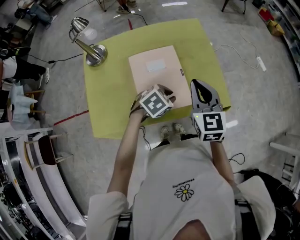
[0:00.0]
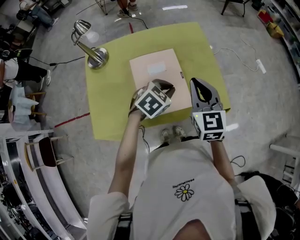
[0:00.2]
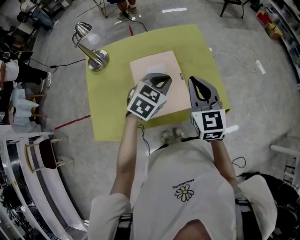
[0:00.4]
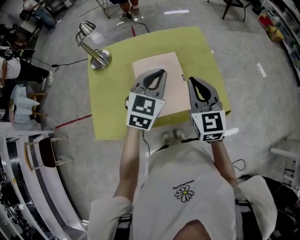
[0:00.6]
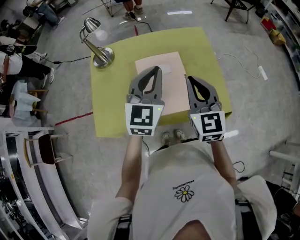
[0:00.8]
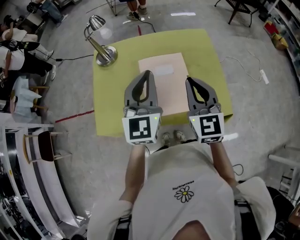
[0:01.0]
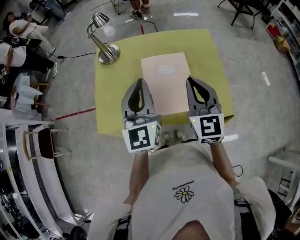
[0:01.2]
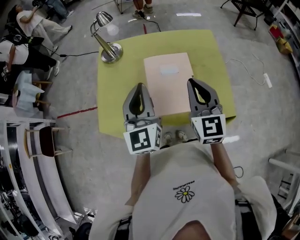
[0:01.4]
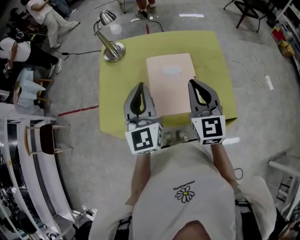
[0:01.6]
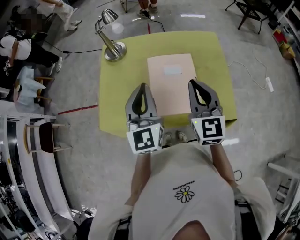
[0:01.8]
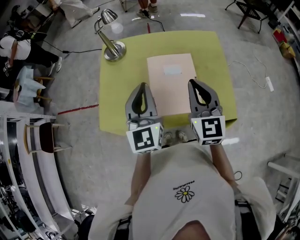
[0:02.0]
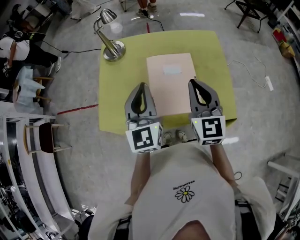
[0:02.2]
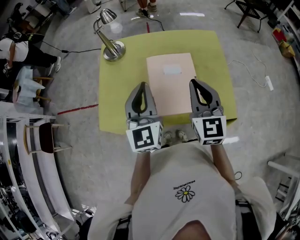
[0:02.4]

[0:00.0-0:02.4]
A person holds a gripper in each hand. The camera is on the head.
0:00.0 to 0:01.2: The right gripper goes about 5 cm upward. The left gripper shifts roughly 25 cm upward, and tips its fingers upward by roughly 60 degrees.
0:01.2 to 0:02.4: There are only small adjustments of the grippers.

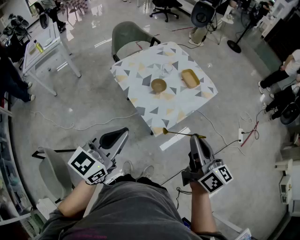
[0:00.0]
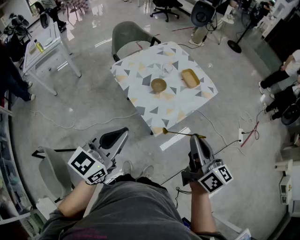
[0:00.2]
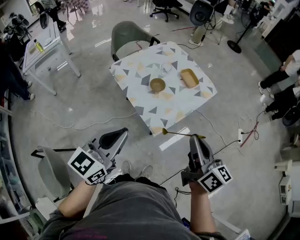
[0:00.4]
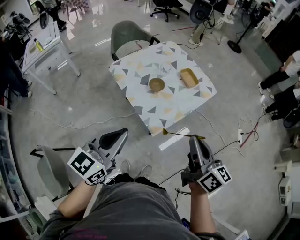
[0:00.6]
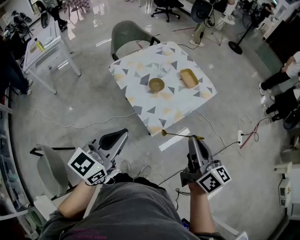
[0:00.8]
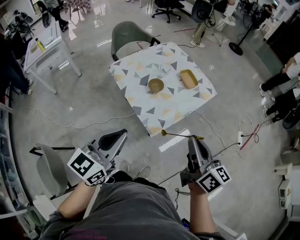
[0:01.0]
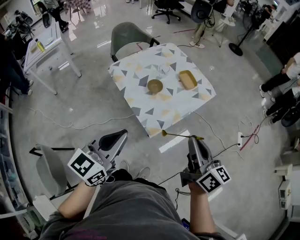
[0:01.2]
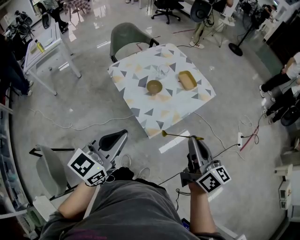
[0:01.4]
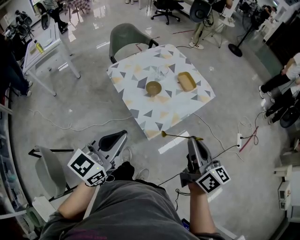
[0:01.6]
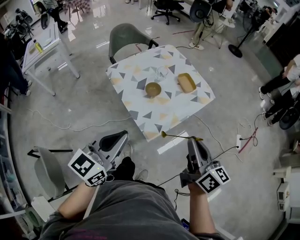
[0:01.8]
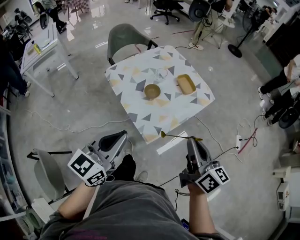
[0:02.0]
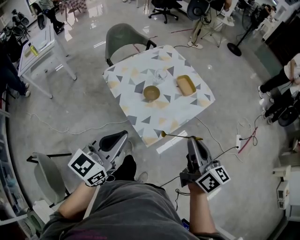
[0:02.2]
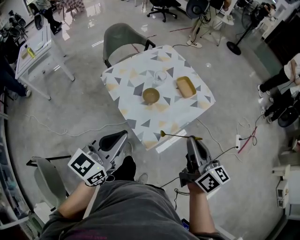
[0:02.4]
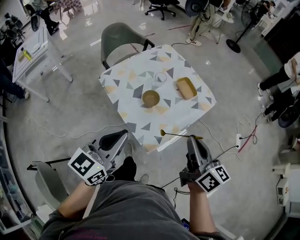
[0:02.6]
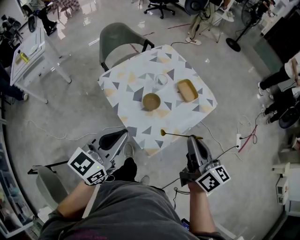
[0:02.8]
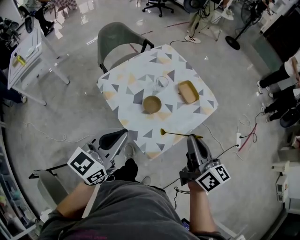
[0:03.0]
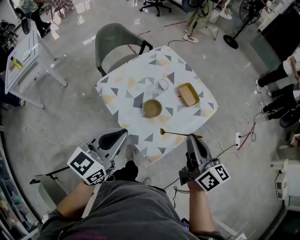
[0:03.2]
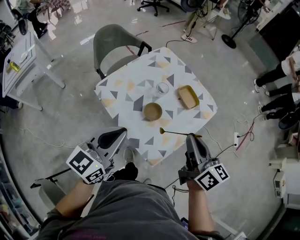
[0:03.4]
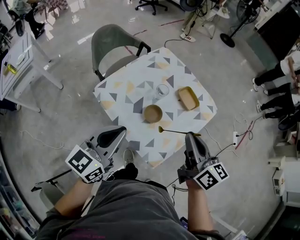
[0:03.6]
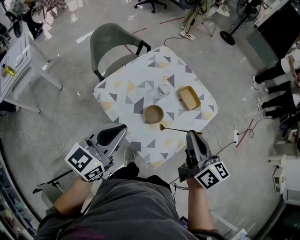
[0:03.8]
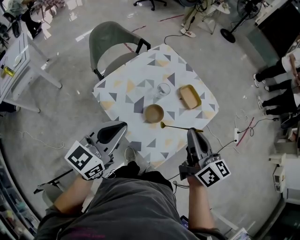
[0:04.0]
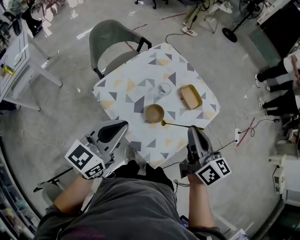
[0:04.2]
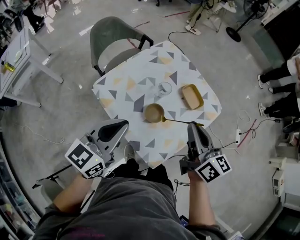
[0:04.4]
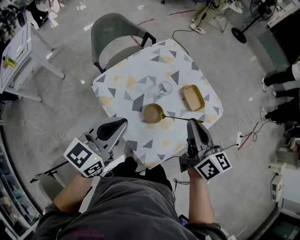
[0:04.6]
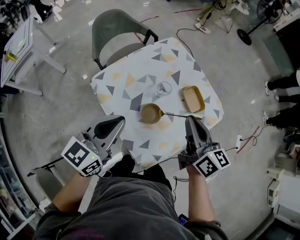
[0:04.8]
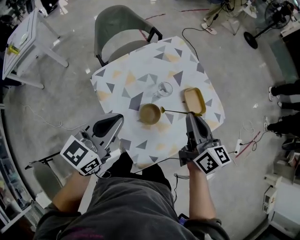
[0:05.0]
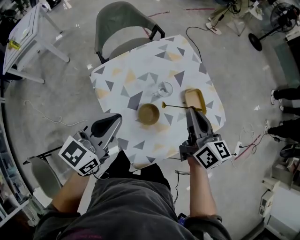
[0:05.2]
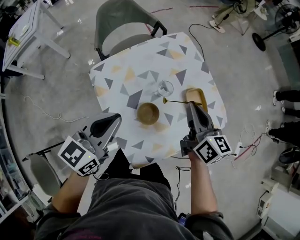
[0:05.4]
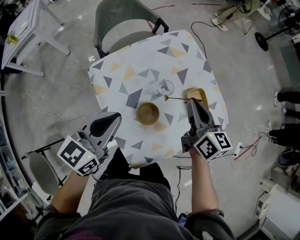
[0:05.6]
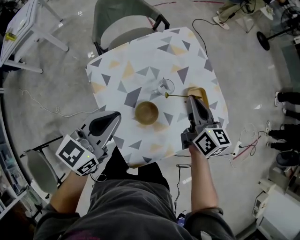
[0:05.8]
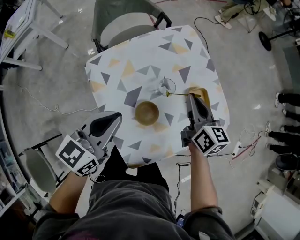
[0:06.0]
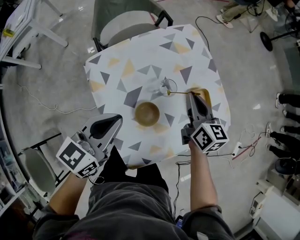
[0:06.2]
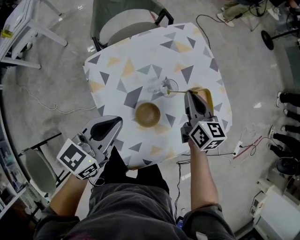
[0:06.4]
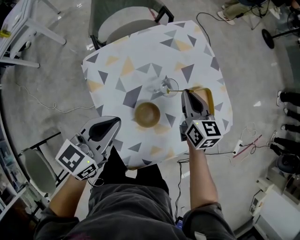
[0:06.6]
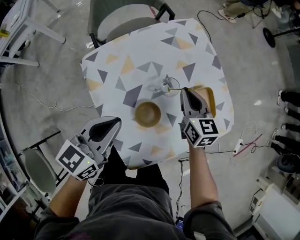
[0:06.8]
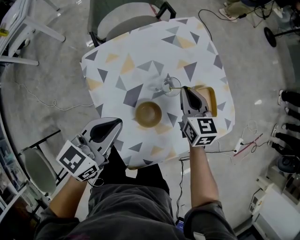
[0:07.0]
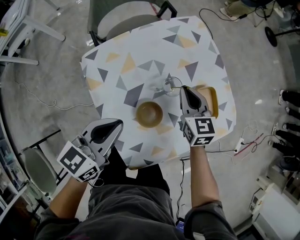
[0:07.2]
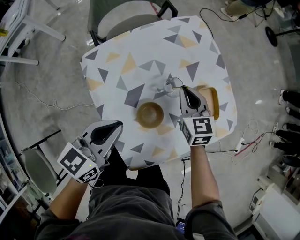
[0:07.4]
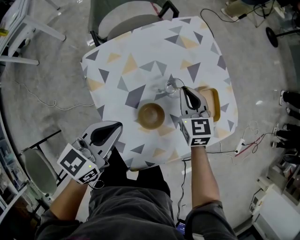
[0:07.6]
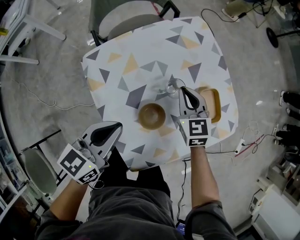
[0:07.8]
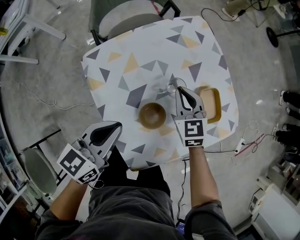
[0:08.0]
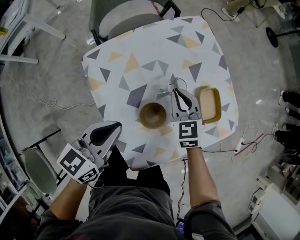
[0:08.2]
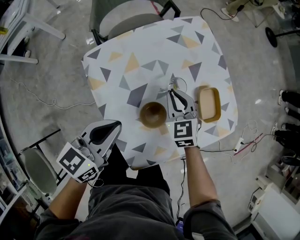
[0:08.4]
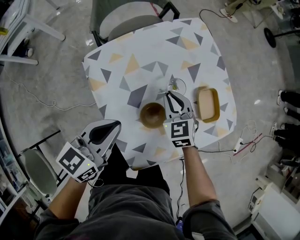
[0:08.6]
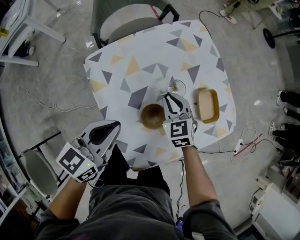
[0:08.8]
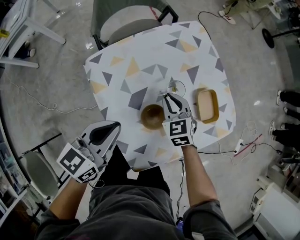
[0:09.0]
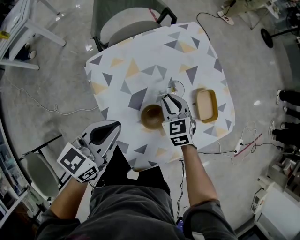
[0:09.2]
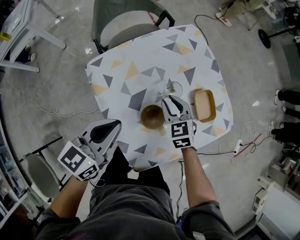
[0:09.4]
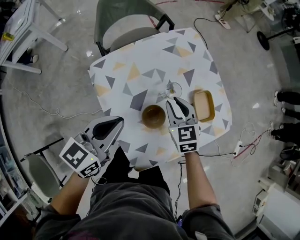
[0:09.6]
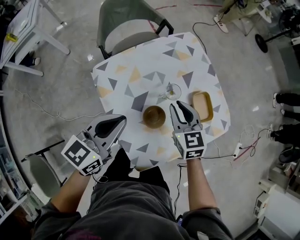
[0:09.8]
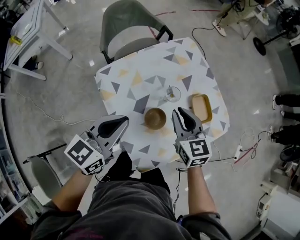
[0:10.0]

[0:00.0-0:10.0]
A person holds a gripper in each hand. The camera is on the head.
0:00.0 to 0:01.4: The right gripper ends up roughly 5 cm from where it was.
0:01.4 to 0:02.8: Both grippers travel together forward, about 15 cm.
0:02.8 to 0:04.2: The grippers both shift forward and to the left by some 15 cm.
0:04.2 to 0:05.8: The right gripper shifts approximately 25 cm forward and downward. The left gripper heads forward and downward, covering about 15 cm.
0:05.8 to 0:07.2: The two grippers go roughly 10 cm downward. The right gripper changes its angle by about 30 degrees.
0:07.2 to 0:08.6: The right gripper travels to the left by some 5 cm, and turns by about 20 degrees.
0:08.6 to 0:10.0: The left gripper moves upward, approximately 10 cm. Meanwhile the right gripper goes roughly 15 cm upward, and turns by approximately 20 degrees.

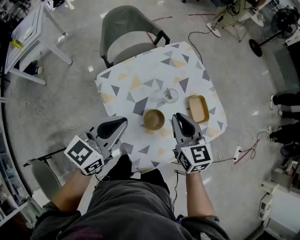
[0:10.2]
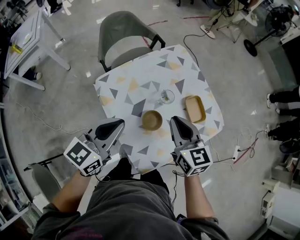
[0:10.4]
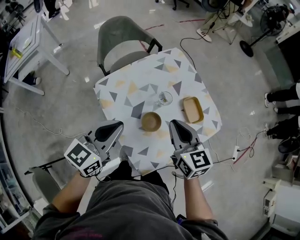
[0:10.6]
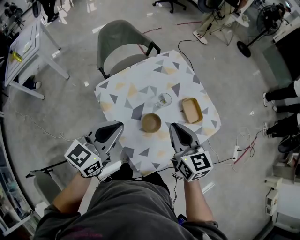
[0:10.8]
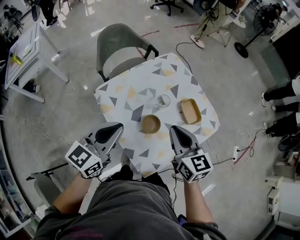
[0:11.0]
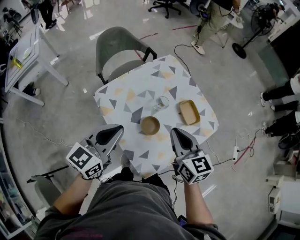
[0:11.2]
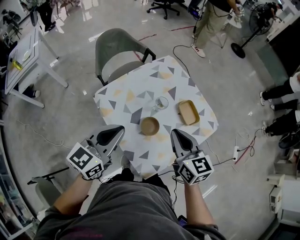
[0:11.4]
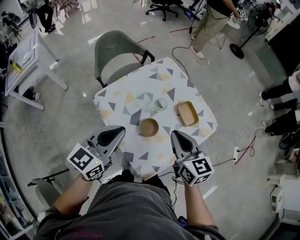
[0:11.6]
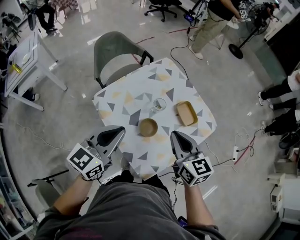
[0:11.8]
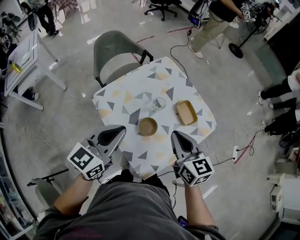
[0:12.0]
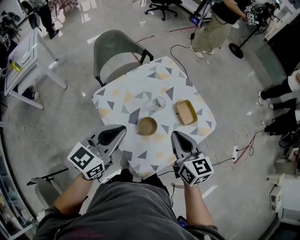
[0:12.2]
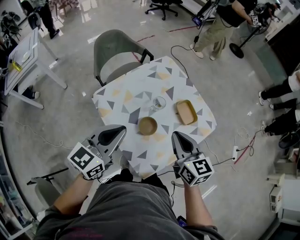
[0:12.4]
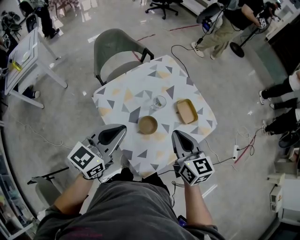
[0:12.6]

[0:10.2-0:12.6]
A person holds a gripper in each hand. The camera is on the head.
0:10.2 to 0:11.4: The left gripper is displaced upward by approximately 5 cm. The right gripper heads backward and upward, covering roughly 10 cm.
0:11.4 to 0:12.6: The grippers make only small movements.

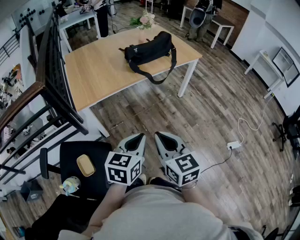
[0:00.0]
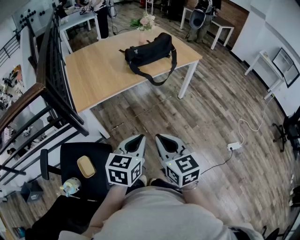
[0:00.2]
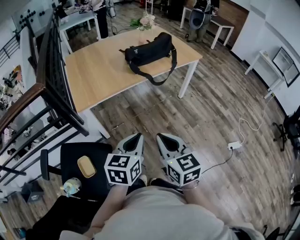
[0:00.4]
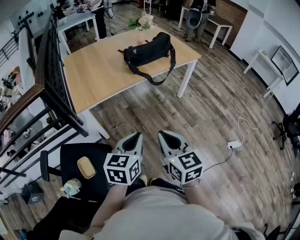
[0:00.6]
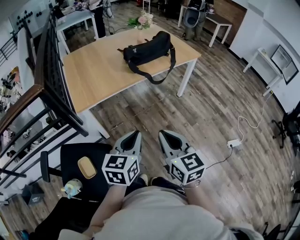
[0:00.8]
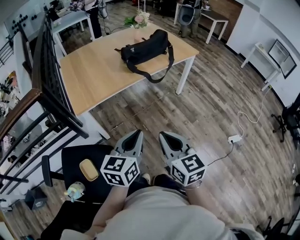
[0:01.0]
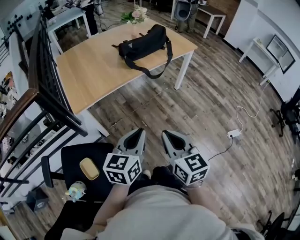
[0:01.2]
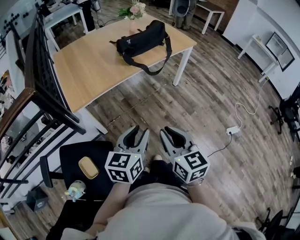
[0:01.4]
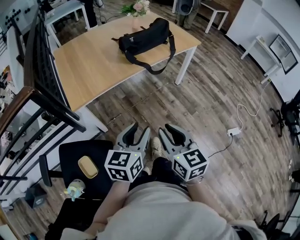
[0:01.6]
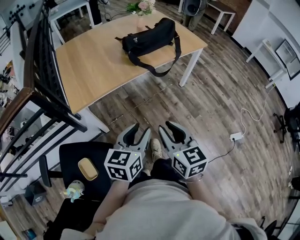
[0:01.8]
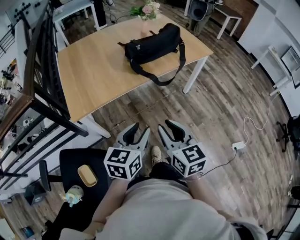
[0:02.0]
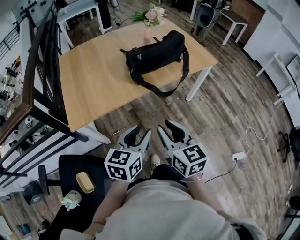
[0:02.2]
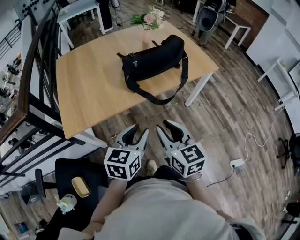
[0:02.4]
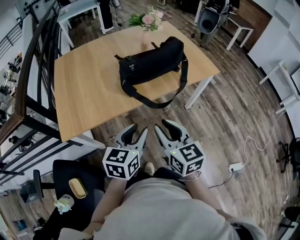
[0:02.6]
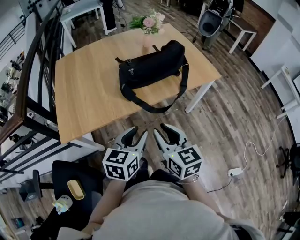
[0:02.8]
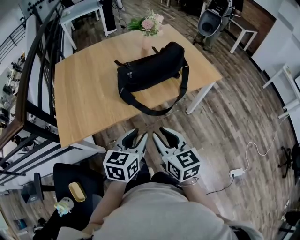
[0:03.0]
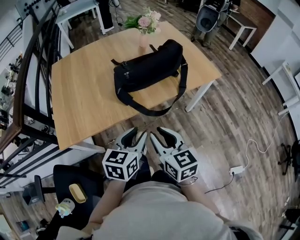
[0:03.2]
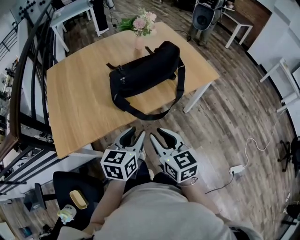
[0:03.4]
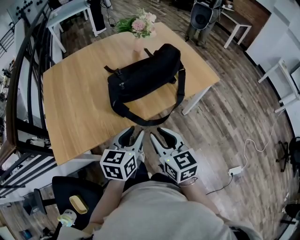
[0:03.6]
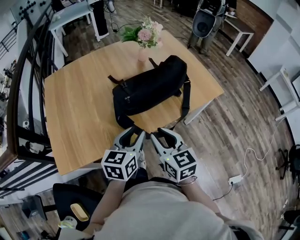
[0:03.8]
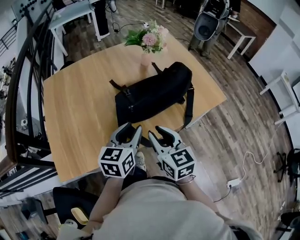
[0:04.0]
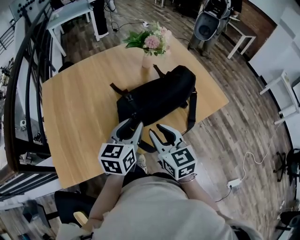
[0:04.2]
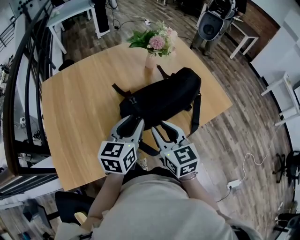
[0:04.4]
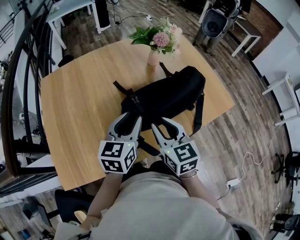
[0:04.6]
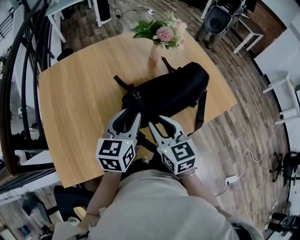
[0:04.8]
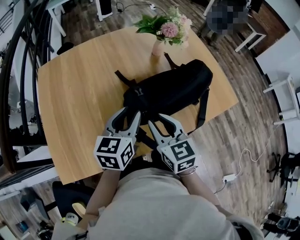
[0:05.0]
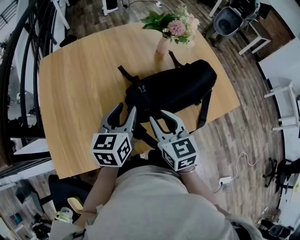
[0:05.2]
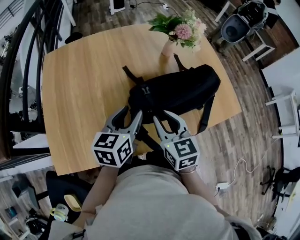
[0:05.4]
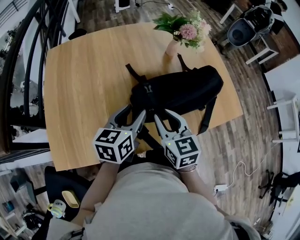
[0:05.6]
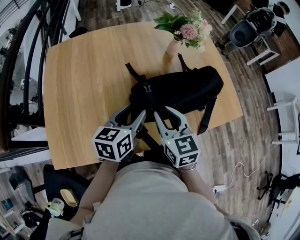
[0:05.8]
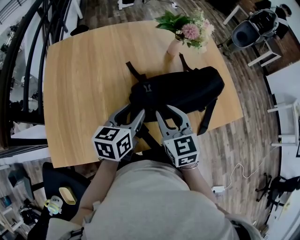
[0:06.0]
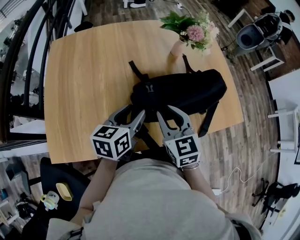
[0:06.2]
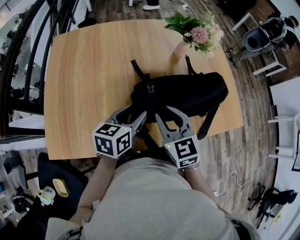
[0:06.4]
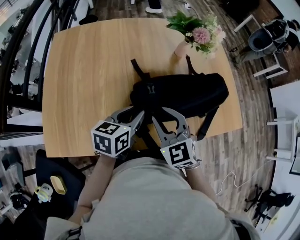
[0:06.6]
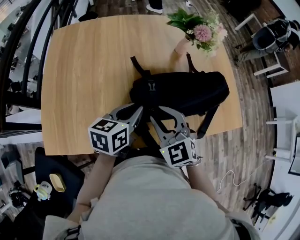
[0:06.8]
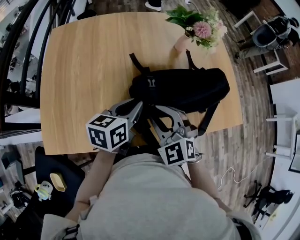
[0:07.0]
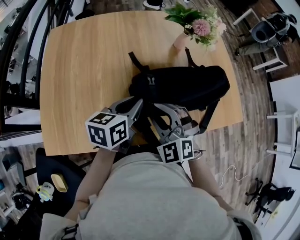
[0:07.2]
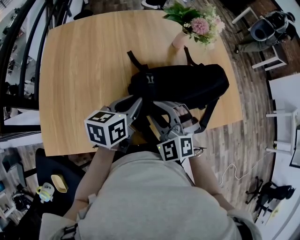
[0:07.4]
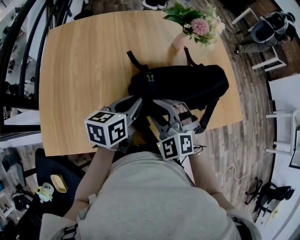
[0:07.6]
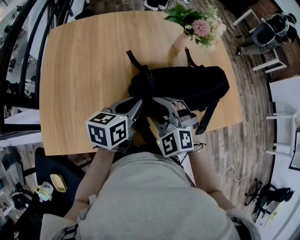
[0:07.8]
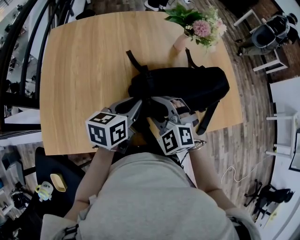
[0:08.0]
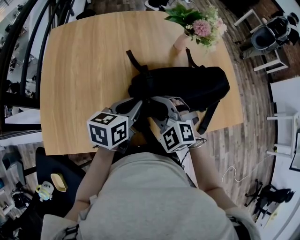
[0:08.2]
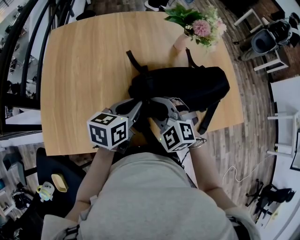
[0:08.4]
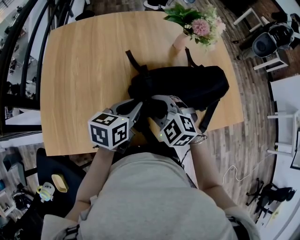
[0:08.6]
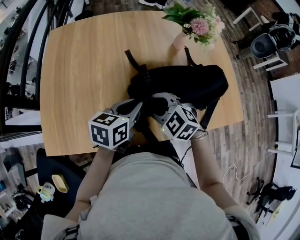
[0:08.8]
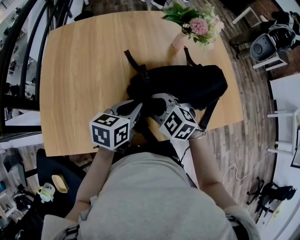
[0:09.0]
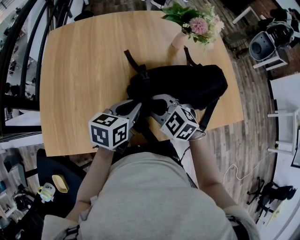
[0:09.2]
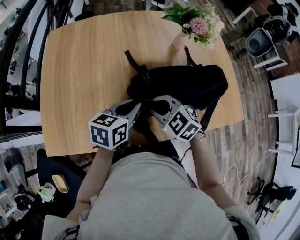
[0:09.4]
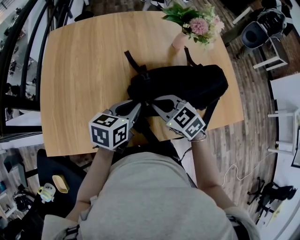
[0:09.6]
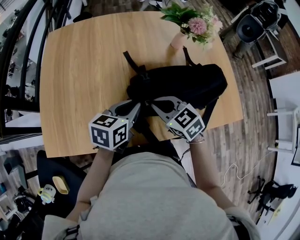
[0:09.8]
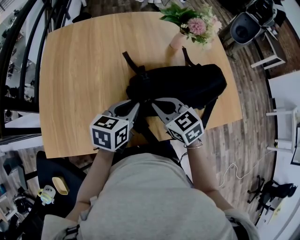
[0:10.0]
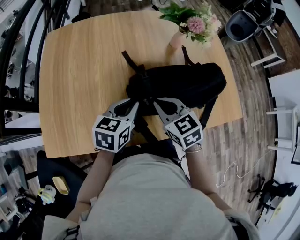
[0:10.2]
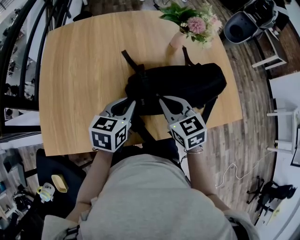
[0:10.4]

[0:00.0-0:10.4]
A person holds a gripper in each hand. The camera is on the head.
0:00.0 to 0:01.4: The left gripper opens up.
0:01.4 to 0:03.0: The grippers both shift forward by roughly 30 cm.
0:03.0 to 0:04.4: The two grippers go some 30 cm forward.
0:04.4 to 0:06.0: The right gripper travels forward by about 5 cm, while the left gripper moves downward, approximately 5 cm.
0:06.0 to 0:07.4: The right gripper rolls counterclockwise, seen from behind, by approximately 50 degrees, while the left gripper closes up.
0:07.4 to 0:09.0: The right gripper shifts by about 5 cm, and changes its angle by about 30 degrees.
0:09.0 to 0:10.4: The right gripper heads to the right, covering approximately 5 cm, rotates roughly 40 degrees, and closes.
